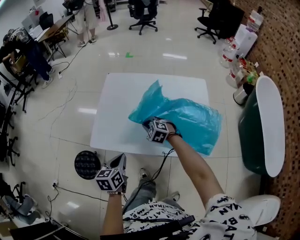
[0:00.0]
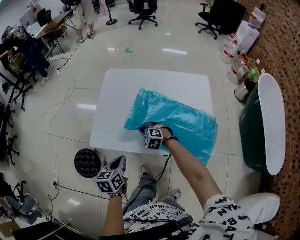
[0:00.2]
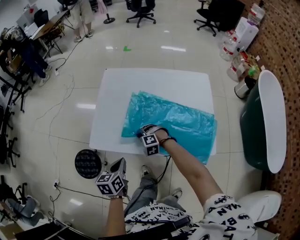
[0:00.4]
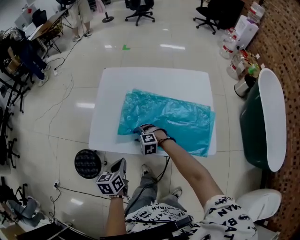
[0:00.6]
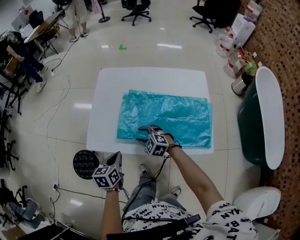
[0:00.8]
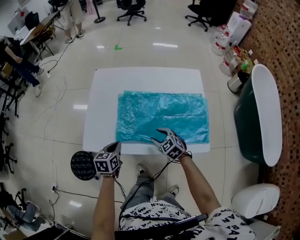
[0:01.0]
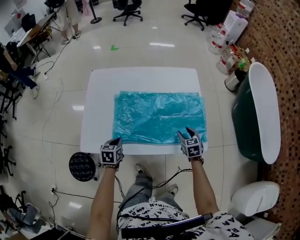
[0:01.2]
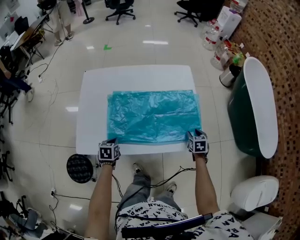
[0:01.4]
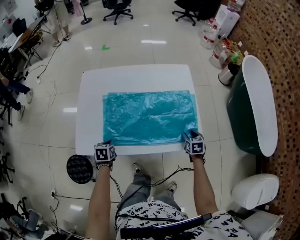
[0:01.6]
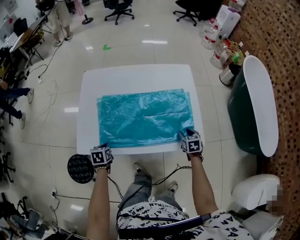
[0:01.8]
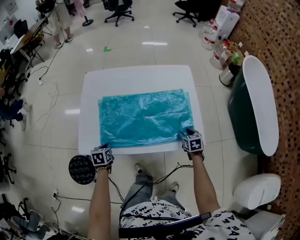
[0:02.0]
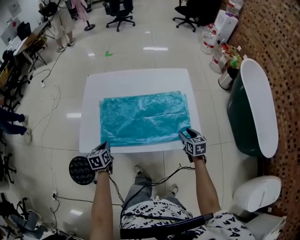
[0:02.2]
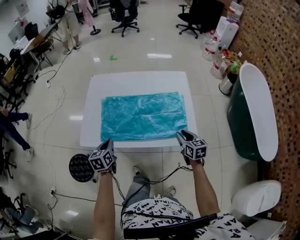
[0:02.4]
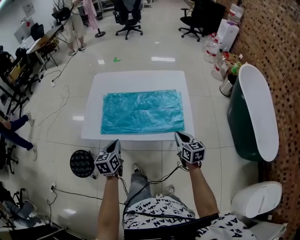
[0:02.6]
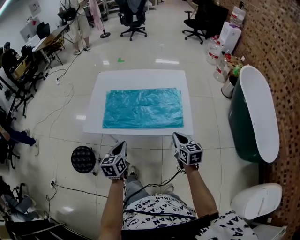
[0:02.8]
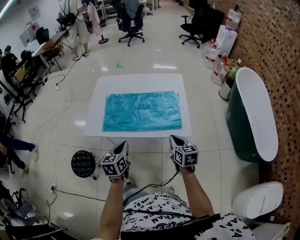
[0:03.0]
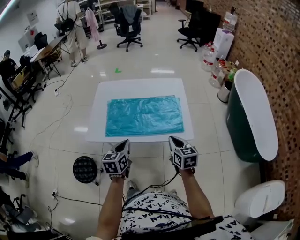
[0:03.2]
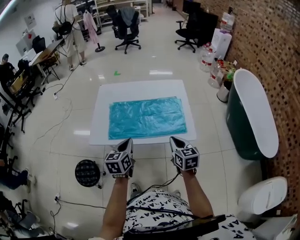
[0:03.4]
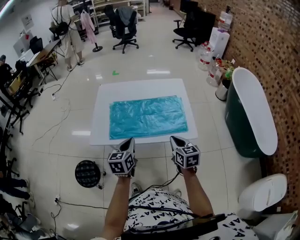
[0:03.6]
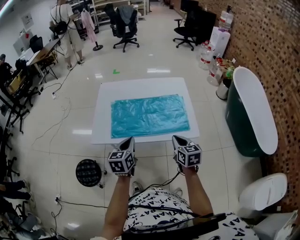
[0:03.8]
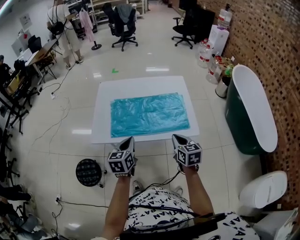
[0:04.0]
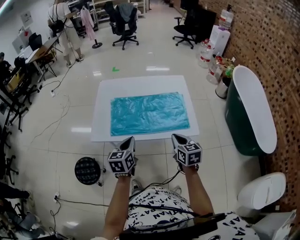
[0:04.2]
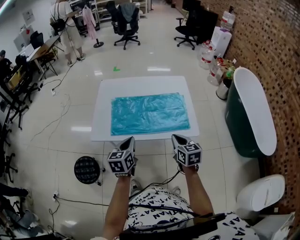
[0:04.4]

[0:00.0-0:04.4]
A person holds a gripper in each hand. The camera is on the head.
0:00.0 to 0:01.4: The right gripper goes up and down, roughly 10 cm each way, reversing 2 times, rotates around the line of its fingers by roughly 70 degrees, clockwise from behind, and opens, while the left gripper is displaced downward by about 15 cm, and changes its angle by about 30 degrees.
0:01.4 to 0:03.0: The right gripper travels upward, backward and to the left by about 25 cm, swivels some 30 degrees, and closes. The left gripper travels upward, backward and to the right by some 30 cm, and swivels some 30 degrees.
0:03.0 to 0:04.4: The right gripper heads to the left, covering approximately 5 cm.

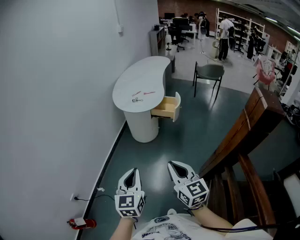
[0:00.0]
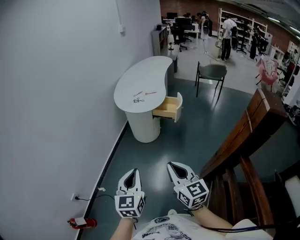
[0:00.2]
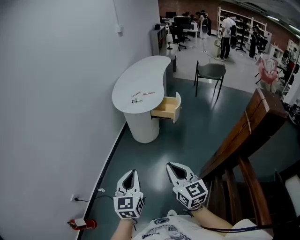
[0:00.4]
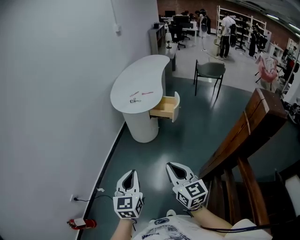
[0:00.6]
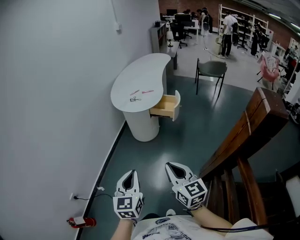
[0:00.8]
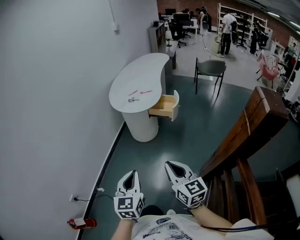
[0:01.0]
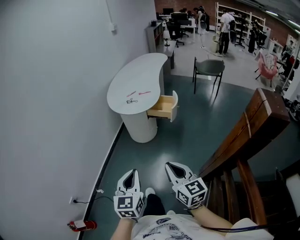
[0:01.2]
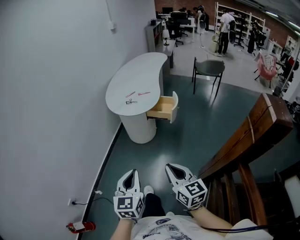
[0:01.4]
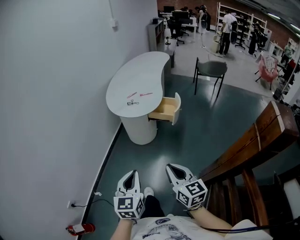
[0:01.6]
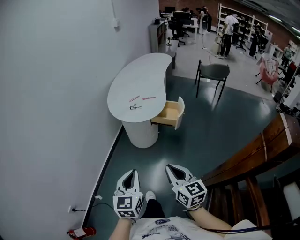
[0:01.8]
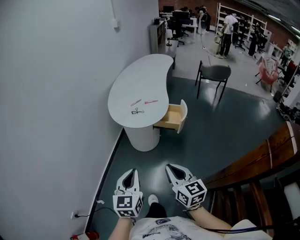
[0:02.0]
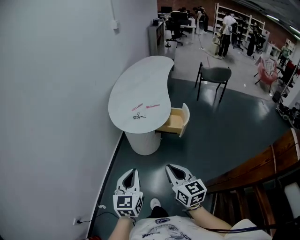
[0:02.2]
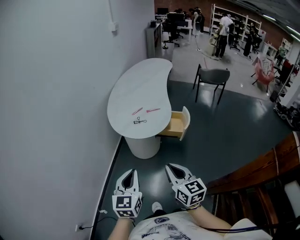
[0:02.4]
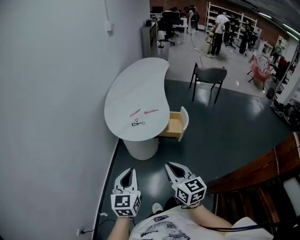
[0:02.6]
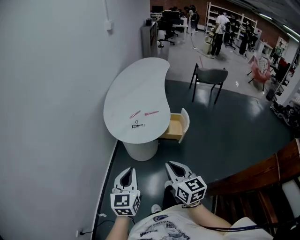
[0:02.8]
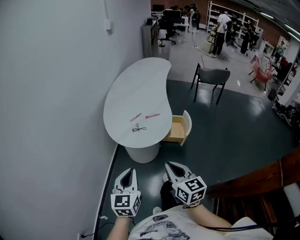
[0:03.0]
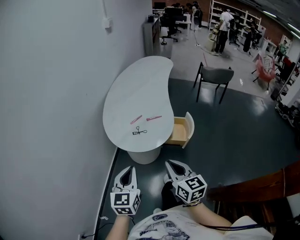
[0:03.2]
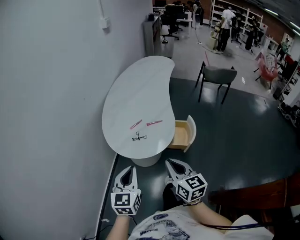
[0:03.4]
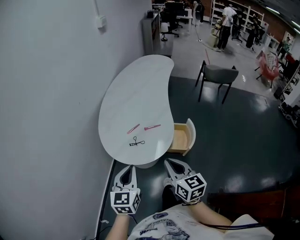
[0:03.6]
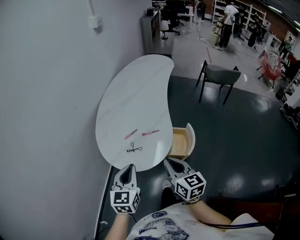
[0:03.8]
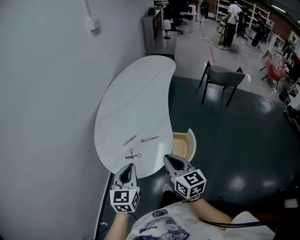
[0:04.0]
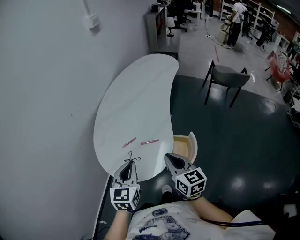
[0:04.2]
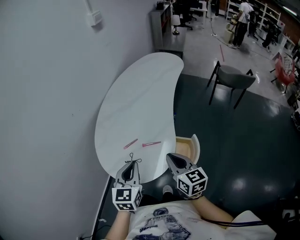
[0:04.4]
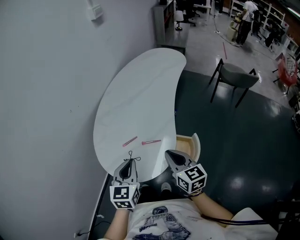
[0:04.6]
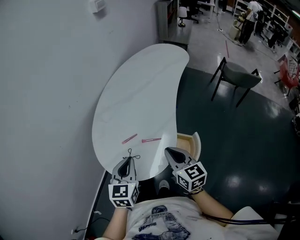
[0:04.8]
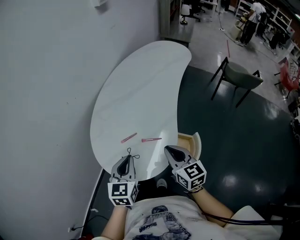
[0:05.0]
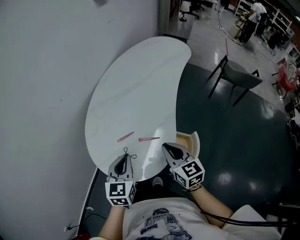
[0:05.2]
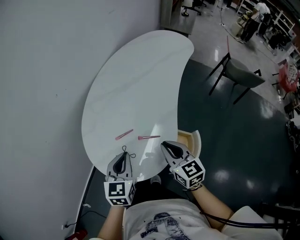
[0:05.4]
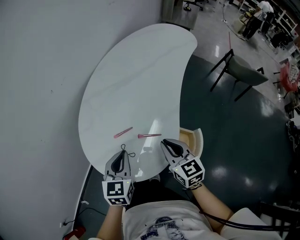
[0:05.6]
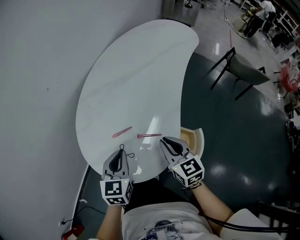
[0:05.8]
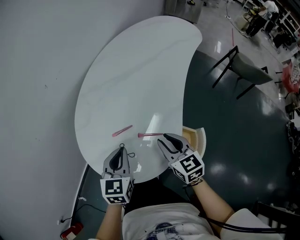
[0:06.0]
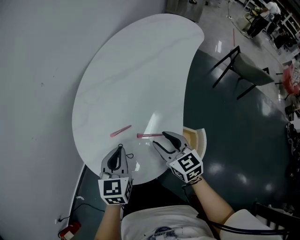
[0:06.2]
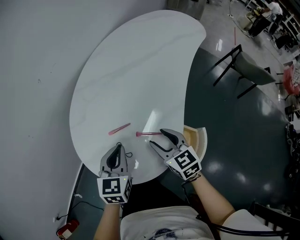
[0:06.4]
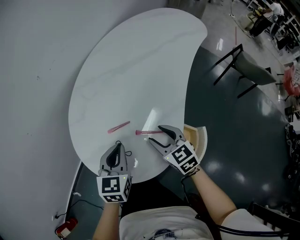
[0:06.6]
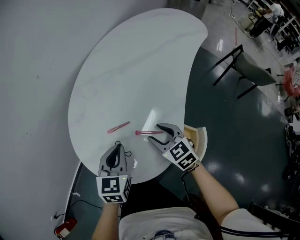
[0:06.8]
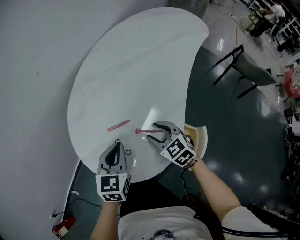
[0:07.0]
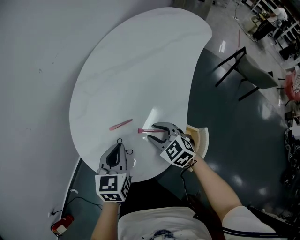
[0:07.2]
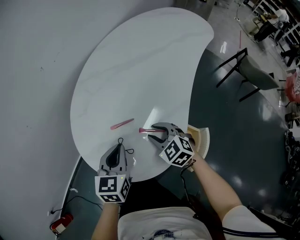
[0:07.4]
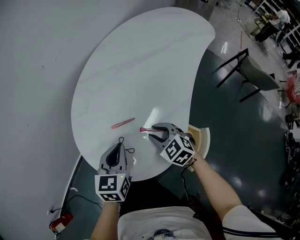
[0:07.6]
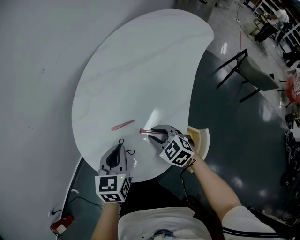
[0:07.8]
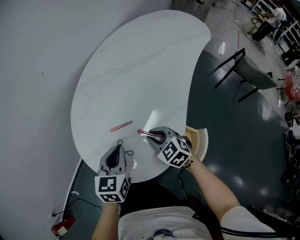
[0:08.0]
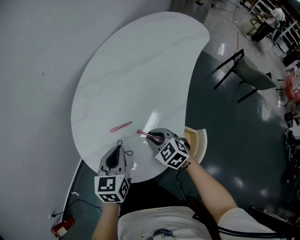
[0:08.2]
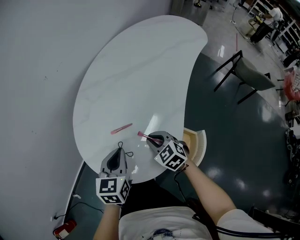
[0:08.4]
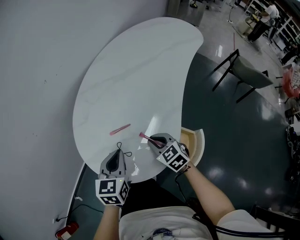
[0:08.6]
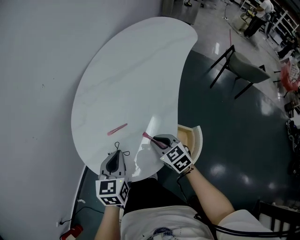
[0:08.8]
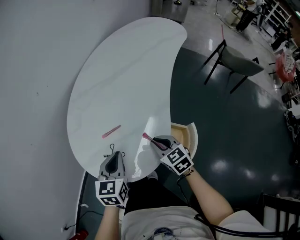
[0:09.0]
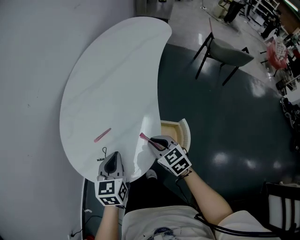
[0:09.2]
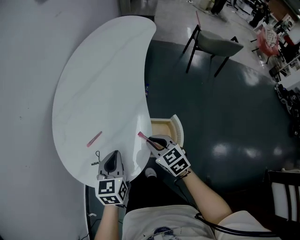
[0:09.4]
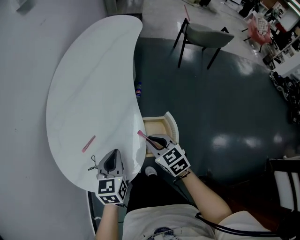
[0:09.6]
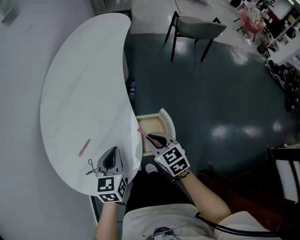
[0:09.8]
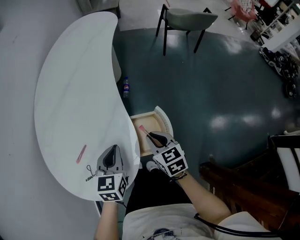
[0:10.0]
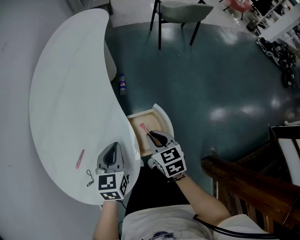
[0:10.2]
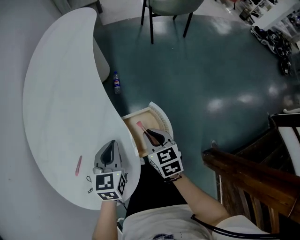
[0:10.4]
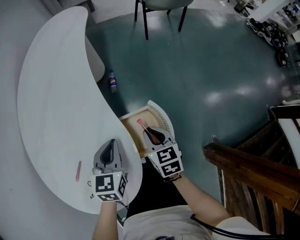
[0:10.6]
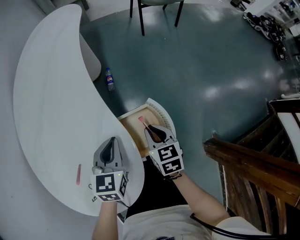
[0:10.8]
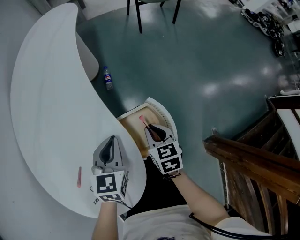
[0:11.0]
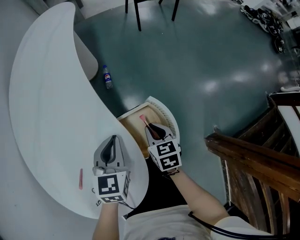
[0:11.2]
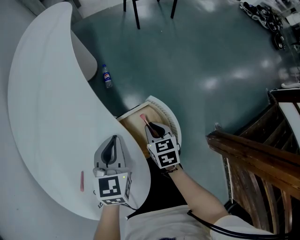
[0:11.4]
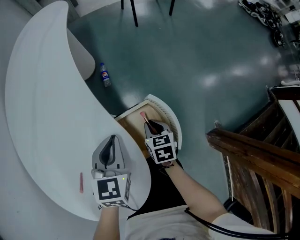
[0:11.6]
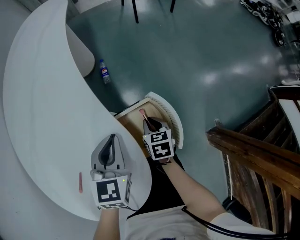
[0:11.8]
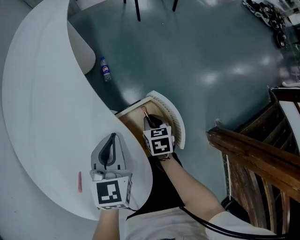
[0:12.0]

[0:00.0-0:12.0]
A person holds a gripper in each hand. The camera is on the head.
0:00.0 to 0:01.6: The right gripper goes approximately 10 cm forward and downward. The left gripper goes about 10 cm forward.
0:01.6 to 0:03.0: The two grippers go some 30 cm forward.
0:03.0 to 0:04.4: Both grippers move forward and to the right, about 35 cm.
0:04.4 to 0:06.0: Both grippers travel together downward and forward, roughly 15 cm. The right gripper swivels roughly 20 degrees.
0:06.0 to 0:07.6: The right gripper heads downward, covering approximately 10 cm, and swivels roughly 40 degrees.
0:07.6 to 0:09.0: The left gripper ends up roughly 5 cm from where it was, while the right gripper shifts about 10 cm backward and to the right, and swivels some 30 degrees.
0:09.0 to 0:10.4: The left gripper moves about 20 cm, and rotates some 30 degrees. Meanwhile the right gripper changes place by approximately 15 cm, and rotates roughly 50 degrees.
0:10.4 to 0:12.0: The left gripper travels forward by roughly 5 cm. Meanwhile the right gripper goes some 15 cm downward, and swivels roughly 30 degrees.

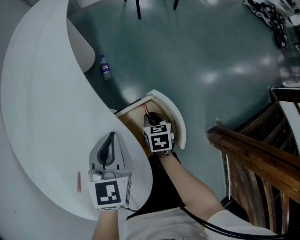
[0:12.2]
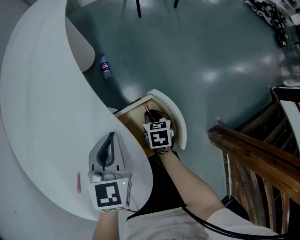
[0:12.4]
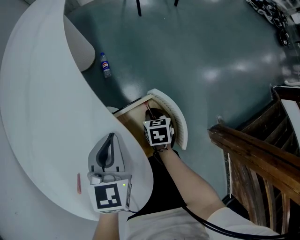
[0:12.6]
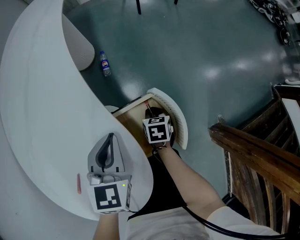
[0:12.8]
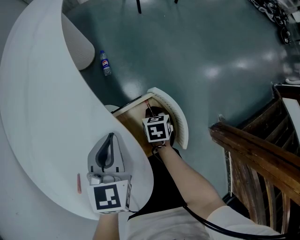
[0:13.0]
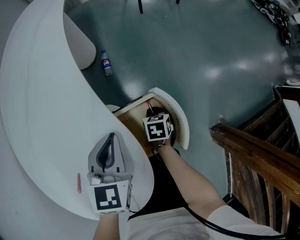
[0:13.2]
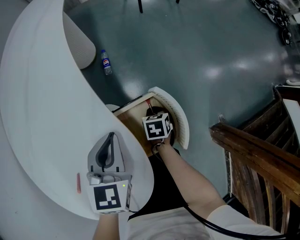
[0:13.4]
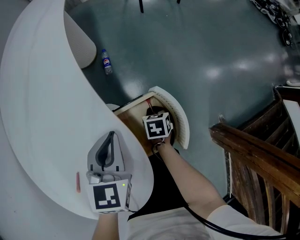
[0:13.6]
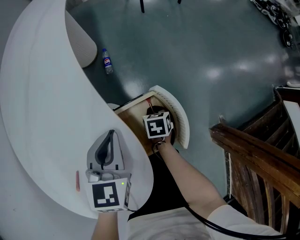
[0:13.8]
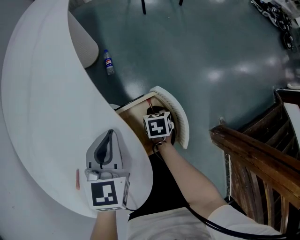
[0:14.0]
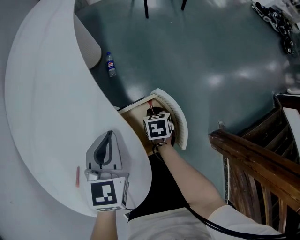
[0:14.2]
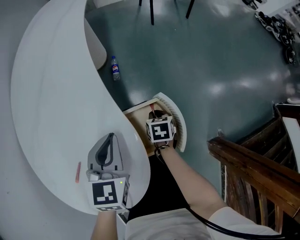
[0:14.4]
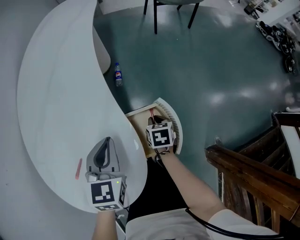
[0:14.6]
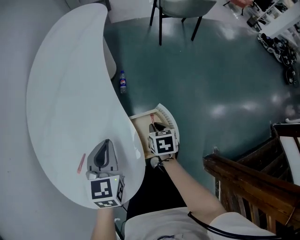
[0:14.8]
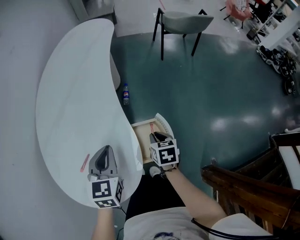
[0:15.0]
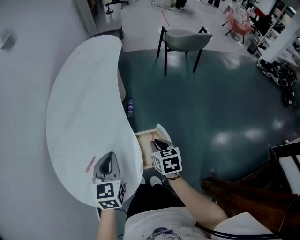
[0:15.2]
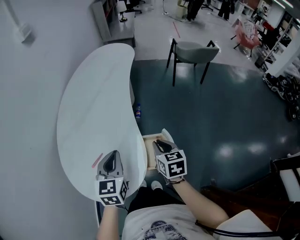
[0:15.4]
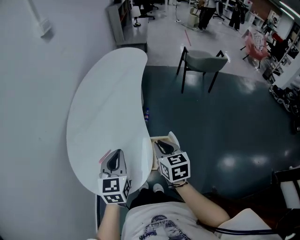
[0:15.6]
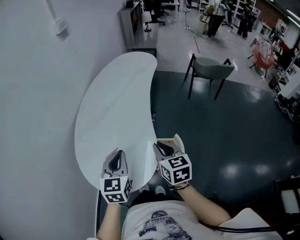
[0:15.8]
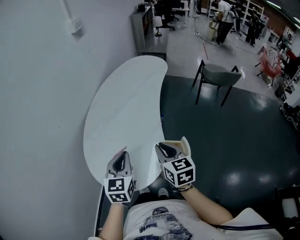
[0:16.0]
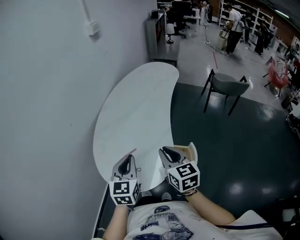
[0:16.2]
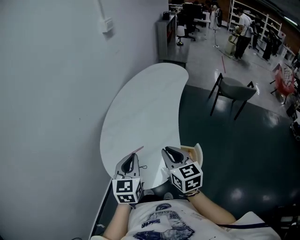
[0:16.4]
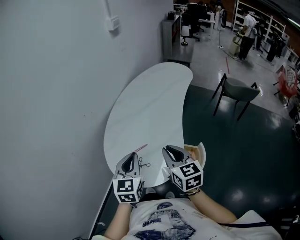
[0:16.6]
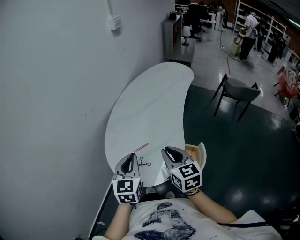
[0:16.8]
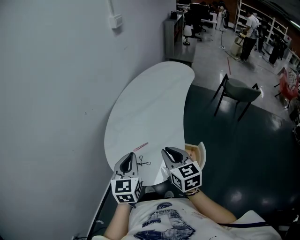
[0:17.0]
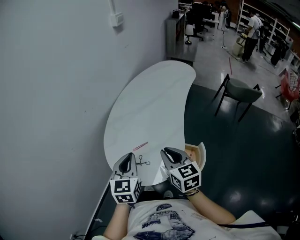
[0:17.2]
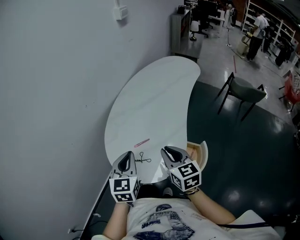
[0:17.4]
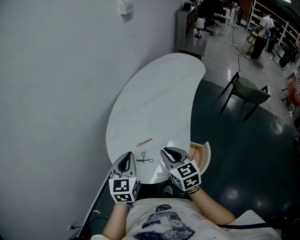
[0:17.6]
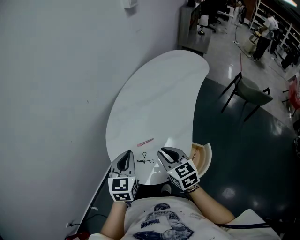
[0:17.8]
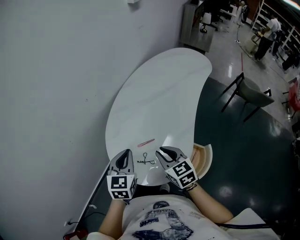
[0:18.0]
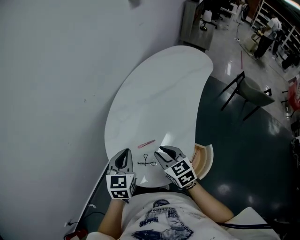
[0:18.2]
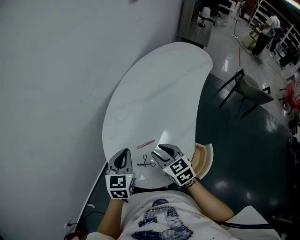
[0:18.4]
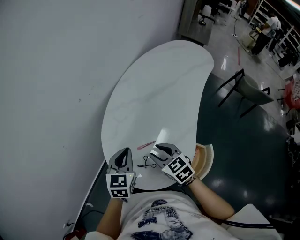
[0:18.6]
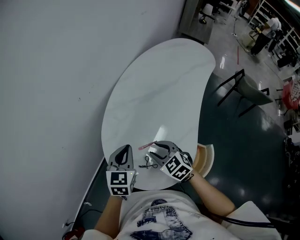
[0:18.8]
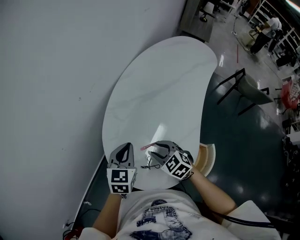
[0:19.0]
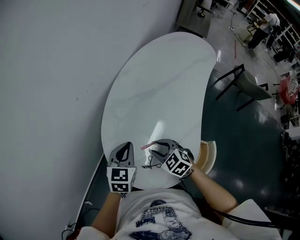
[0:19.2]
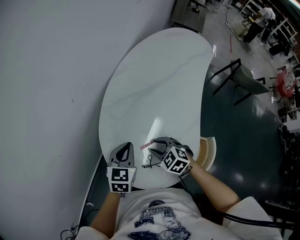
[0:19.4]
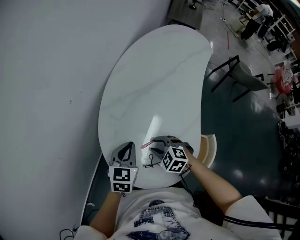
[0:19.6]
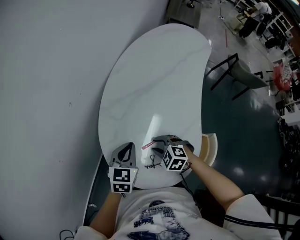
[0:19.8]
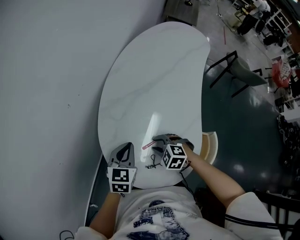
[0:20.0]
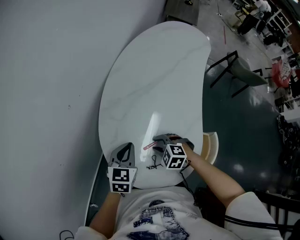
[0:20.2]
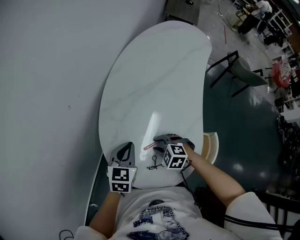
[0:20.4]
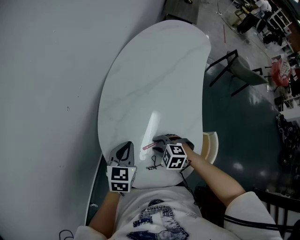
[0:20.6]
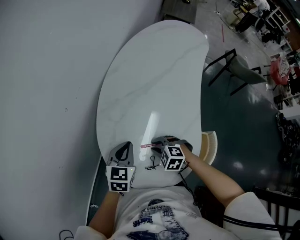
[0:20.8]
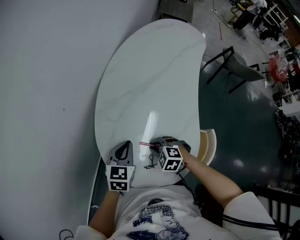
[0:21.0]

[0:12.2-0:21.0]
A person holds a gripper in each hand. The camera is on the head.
0:12.2 to 0:13.6: The grippers make only small movements.
0:13.6 to 0:15.2: The left gripper moves upward and backward, about 15 cm, and changes its angle by about 20 degrees; the right gripper shifts roughly 30 cm upward, and changes its angle by about 30 degrees.
0:15.2 to 0:16.6: The left gripper is displaced to the left, upward and backward by approximately 25 cm, and changes its angle by roughly 20 degrees, while the right gripper goes some 35 cm upward and to the left, and changes its angle by about 40 degrees.
0:16.6 to 0:18.0: The two grippers go about 10 cm downward, to the left and forward. The right gripper changes its angle by some 20 degrees.
0:18.0 to 0:19.6: Both grippers travel together downward and forward, some 15 cm. The right gripper rotates some 40 degrees, and opens.
0:19.6 to 0:21.0: The grippers stay close to where they were, moving slightly.
